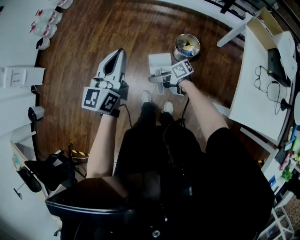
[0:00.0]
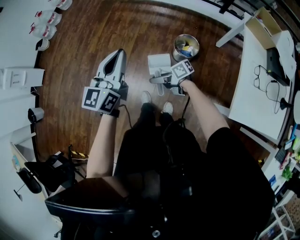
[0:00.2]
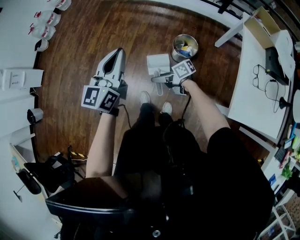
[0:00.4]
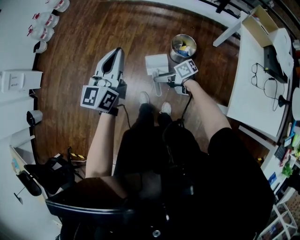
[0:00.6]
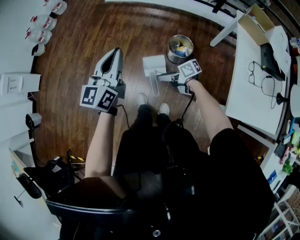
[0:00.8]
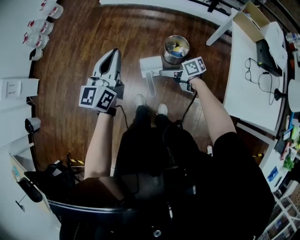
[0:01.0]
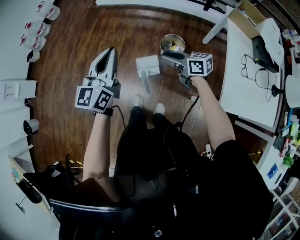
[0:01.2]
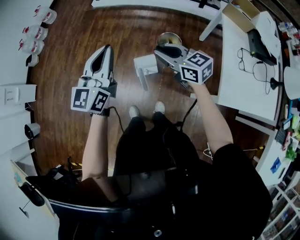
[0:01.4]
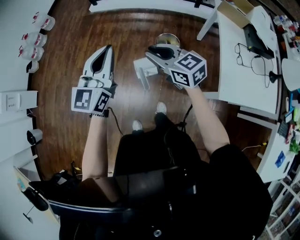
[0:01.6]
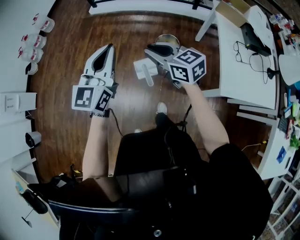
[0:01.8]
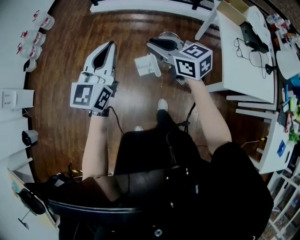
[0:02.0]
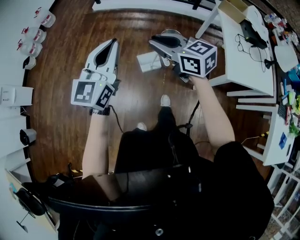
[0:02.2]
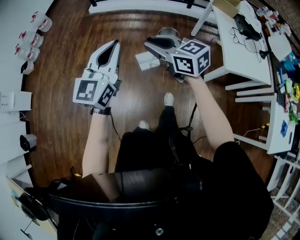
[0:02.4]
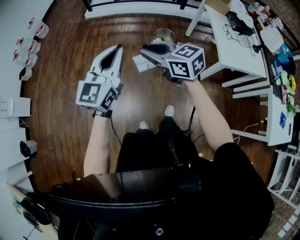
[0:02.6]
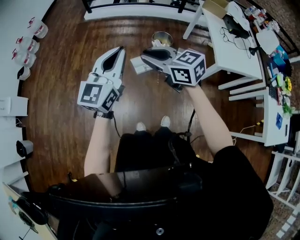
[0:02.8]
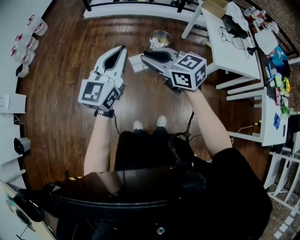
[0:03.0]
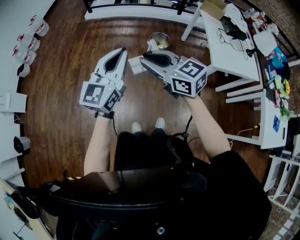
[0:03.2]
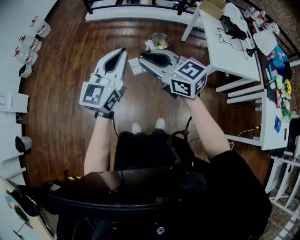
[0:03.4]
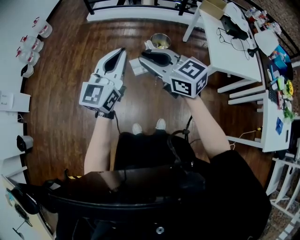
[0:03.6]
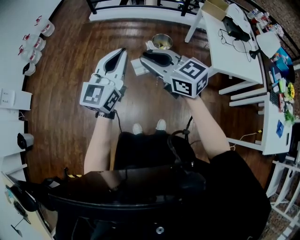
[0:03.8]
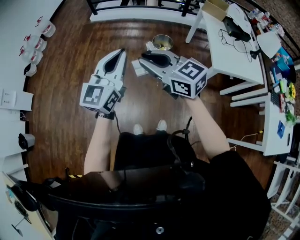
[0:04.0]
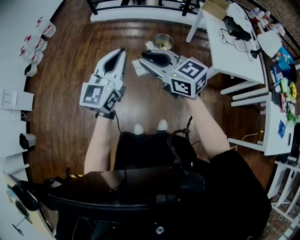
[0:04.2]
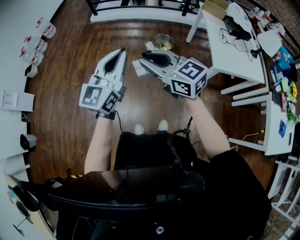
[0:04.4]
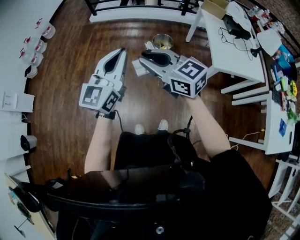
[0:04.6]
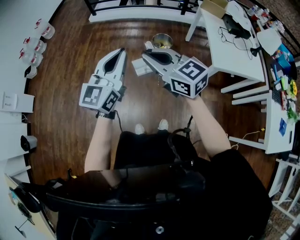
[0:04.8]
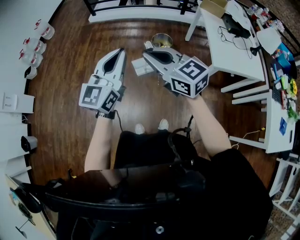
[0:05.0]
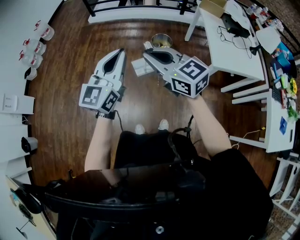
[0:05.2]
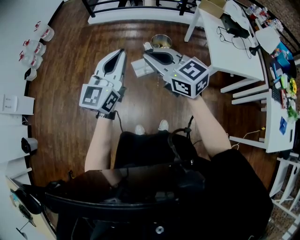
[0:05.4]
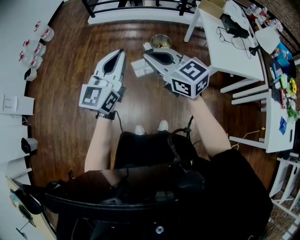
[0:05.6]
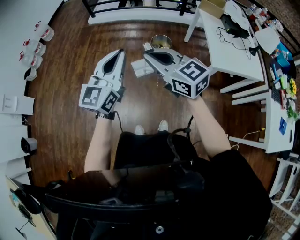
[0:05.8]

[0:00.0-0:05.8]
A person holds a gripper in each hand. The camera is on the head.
0.0 to 1.4 s: The left gripper ends up some 5 cm from where it was, while the right gripper is displaced upward and to the right by some 25 cm, rotates some 60 degrees, and closes.
1.4 to 2.8 s: The right gripper travels to the left and backward by some 35 cm, while the left gripper moves backward and to the left, some 30 cm.
2.8 to 4.4 s: The left gripper is displaced to the right by approximately 5 cm, while the right gripper is displaced to the right and backward by about 10 cm.
4.4 to 5.8 s: The grippers make only small movements.

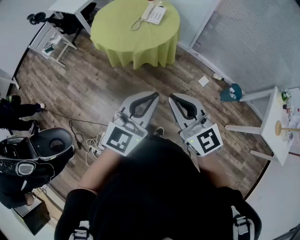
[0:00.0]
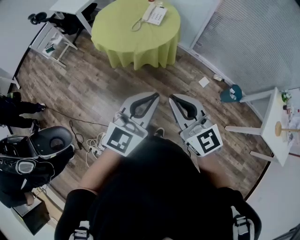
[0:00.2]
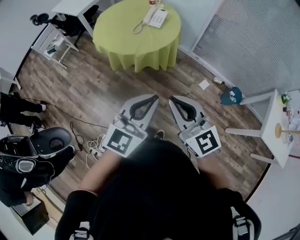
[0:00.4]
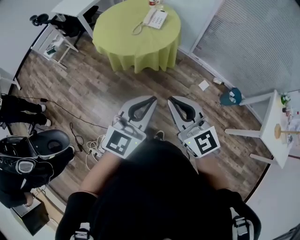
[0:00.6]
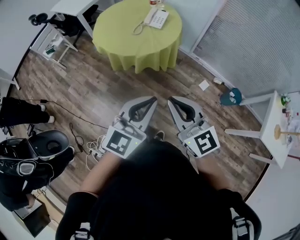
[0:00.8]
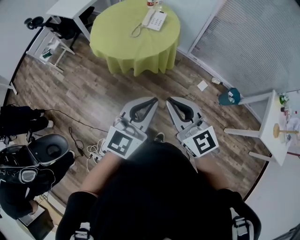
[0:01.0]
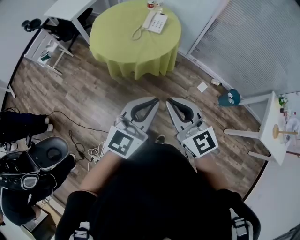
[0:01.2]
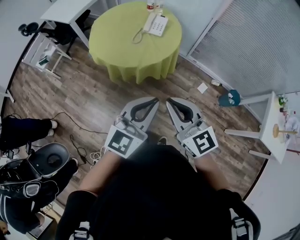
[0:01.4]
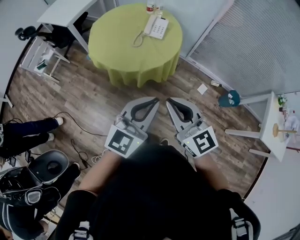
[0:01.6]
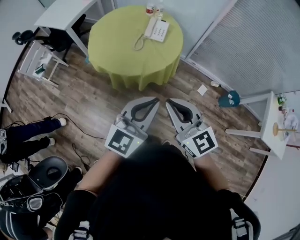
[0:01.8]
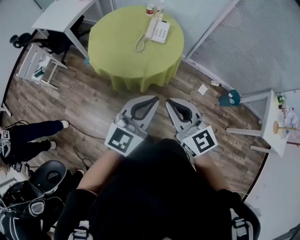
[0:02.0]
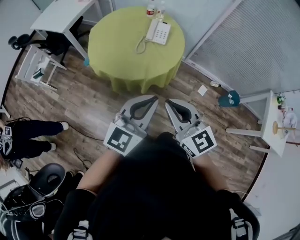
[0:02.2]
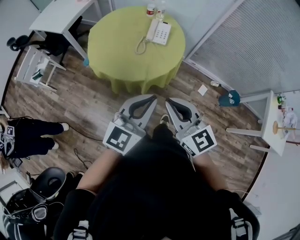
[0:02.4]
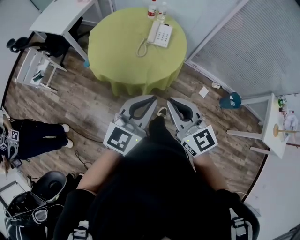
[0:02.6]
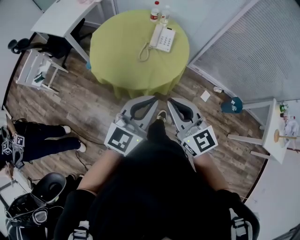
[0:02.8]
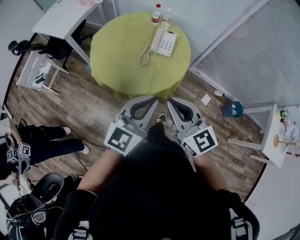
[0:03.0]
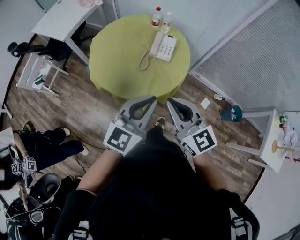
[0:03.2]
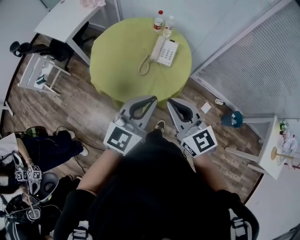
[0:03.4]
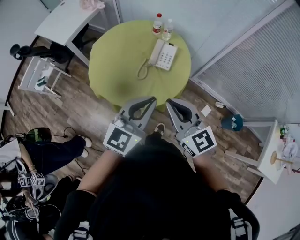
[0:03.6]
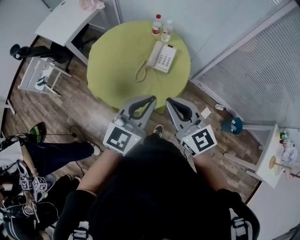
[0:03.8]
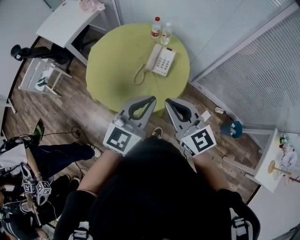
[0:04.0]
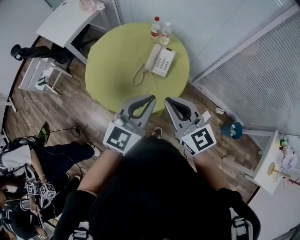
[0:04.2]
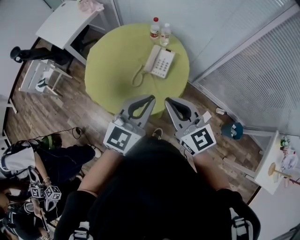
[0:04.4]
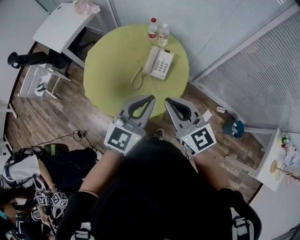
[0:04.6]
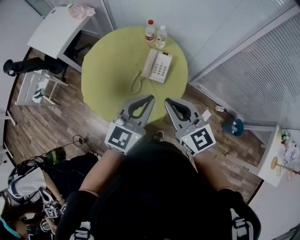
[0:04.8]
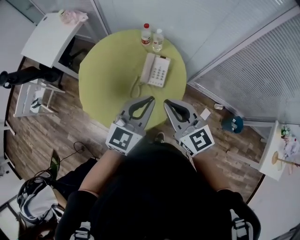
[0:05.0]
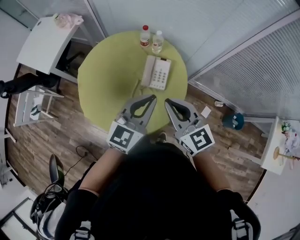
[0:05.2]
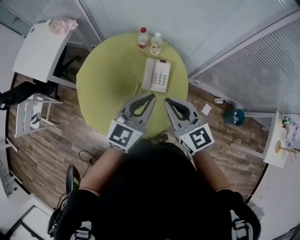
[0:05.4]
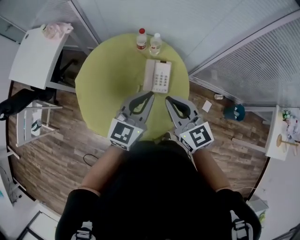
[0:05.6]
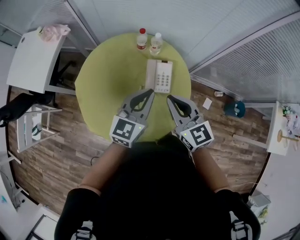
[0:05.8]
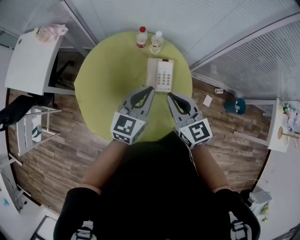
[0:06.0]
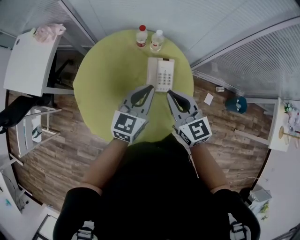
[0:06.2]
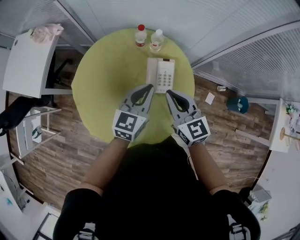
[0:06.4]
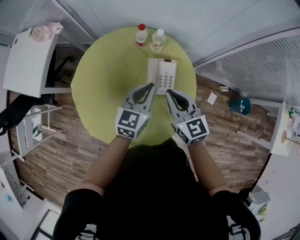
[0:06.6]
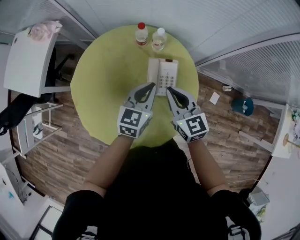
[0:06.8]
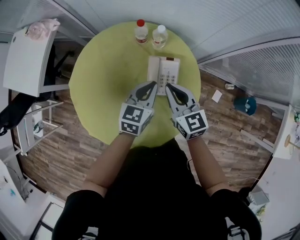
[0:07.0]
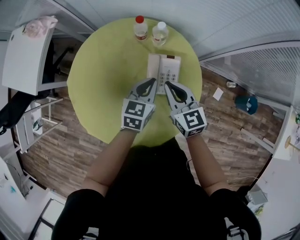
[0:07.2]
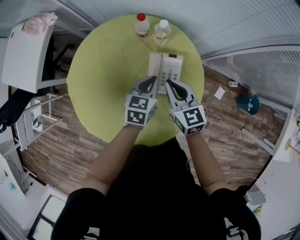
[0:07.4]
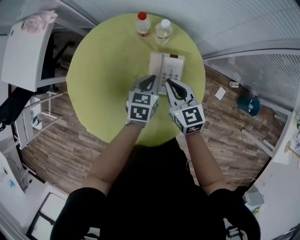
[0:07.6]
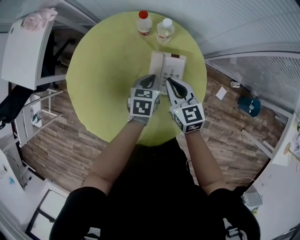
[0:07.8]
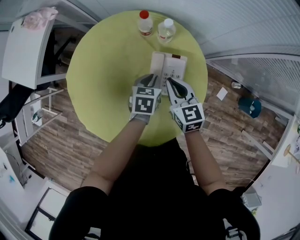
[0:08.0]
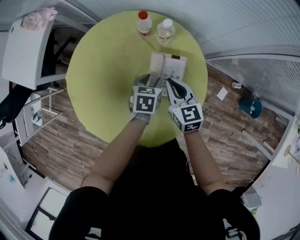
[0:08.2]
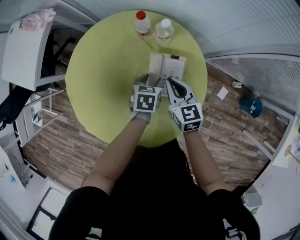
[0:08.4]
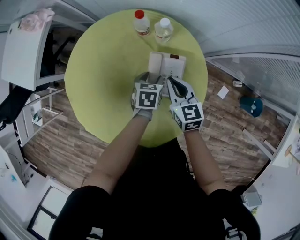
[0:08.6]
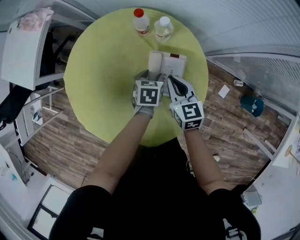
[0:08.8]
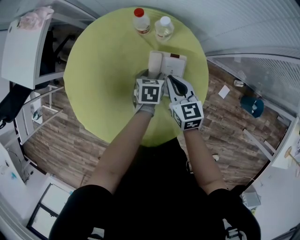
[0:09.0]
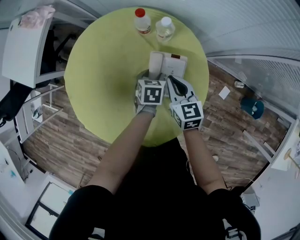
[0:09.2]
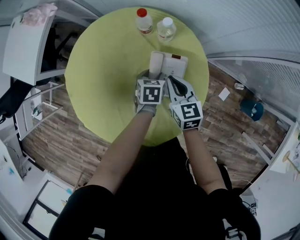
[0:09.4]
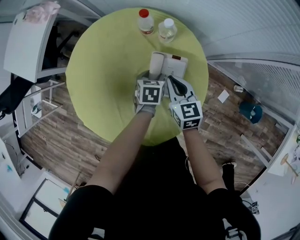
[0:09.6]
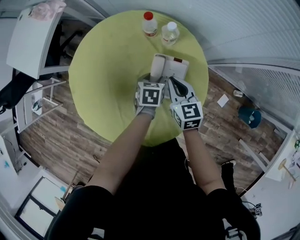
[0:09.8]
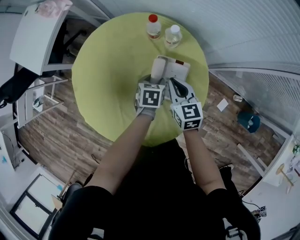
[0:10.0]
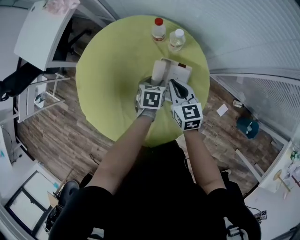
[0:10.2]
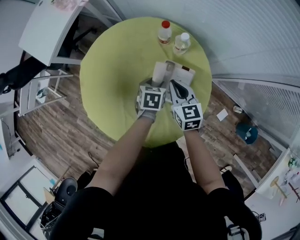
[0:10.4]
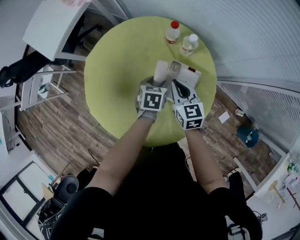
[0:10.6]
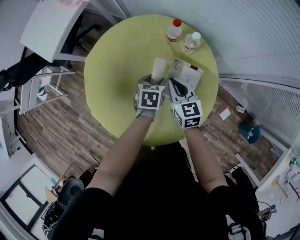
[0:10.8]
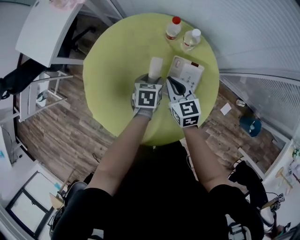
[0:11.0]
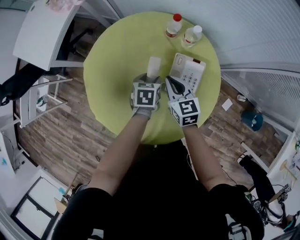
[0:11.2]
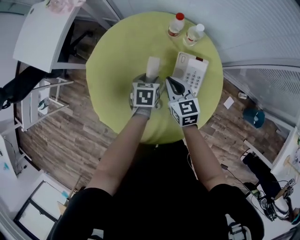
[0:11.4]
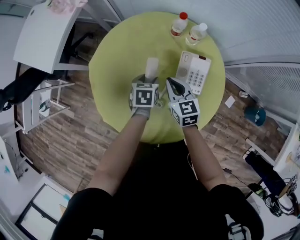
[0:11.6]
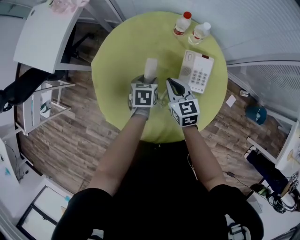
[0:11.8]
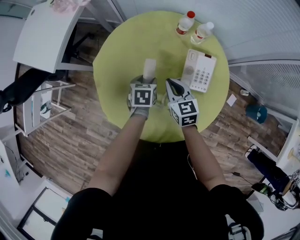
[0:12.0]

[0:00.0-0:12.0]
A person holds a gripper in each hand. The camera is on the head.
0.0 to 1.6 s: The grippers both shift forward and to the left by approximately 20 cm.
1.6 to 3.0 s: The two grippers go about 20 cm forward and to the left.
3.0 to 4.4 s: The two grippers go some 20 cm forward and to the right.
4.4 to 6.0 s: The grippers both shift forward, to the left and downward by approximately 25 cm. The right gripper changes its angle by approximately 30 degrees.
6.0 to 7.6 s: Both grippers travel together downward and forward, roughly 25 cm. The left gripper angles its fingers downward, by about 30 degrees.
7.6 to 9.0 s: The left gripper heads downward, covering approximately 10 cm, and opens up. The right gripper travels downward by about 5 cm.
9.0 to 10.4 s: The left gripper goes approximately 5 cm upward.
10.4 to 12.0 s: Both grippers travel together to the left, about 15 cm.

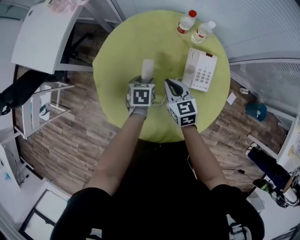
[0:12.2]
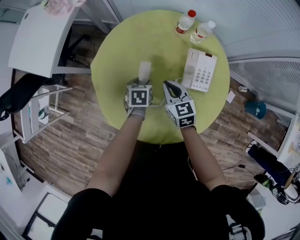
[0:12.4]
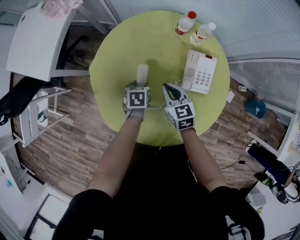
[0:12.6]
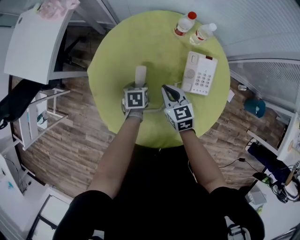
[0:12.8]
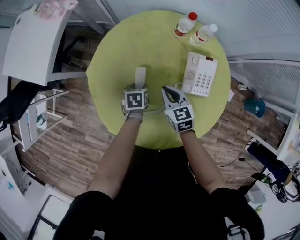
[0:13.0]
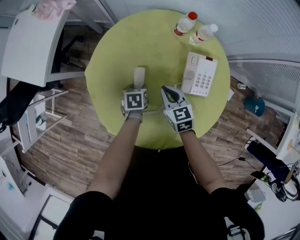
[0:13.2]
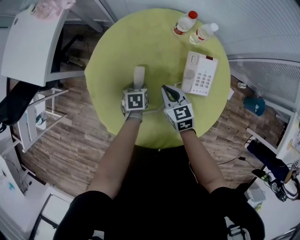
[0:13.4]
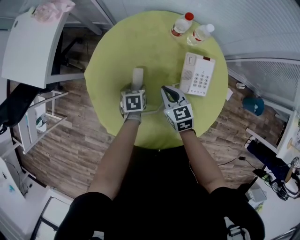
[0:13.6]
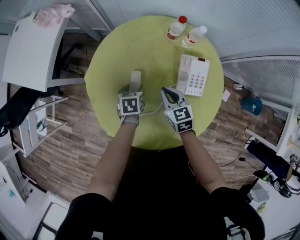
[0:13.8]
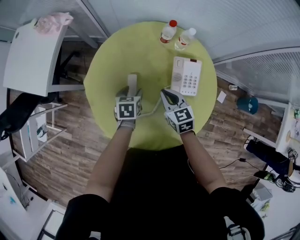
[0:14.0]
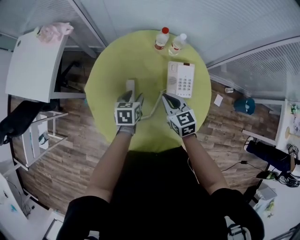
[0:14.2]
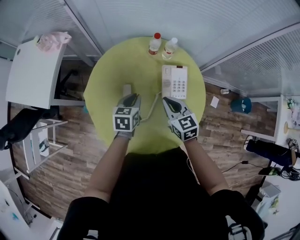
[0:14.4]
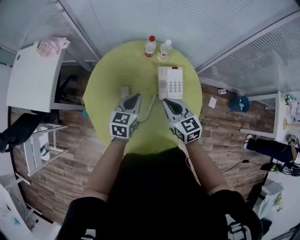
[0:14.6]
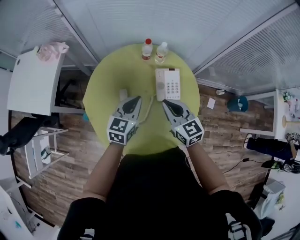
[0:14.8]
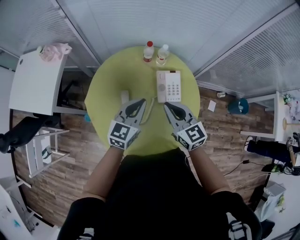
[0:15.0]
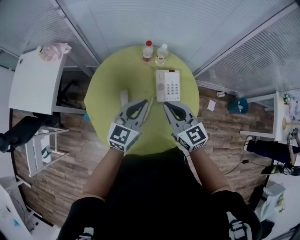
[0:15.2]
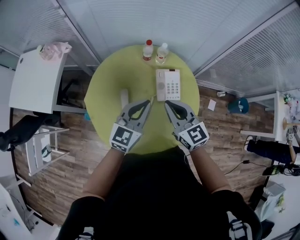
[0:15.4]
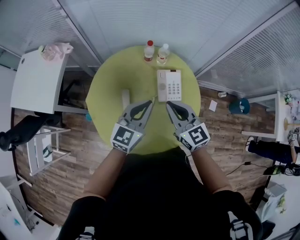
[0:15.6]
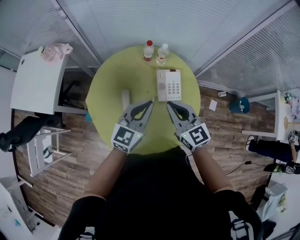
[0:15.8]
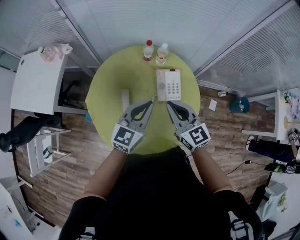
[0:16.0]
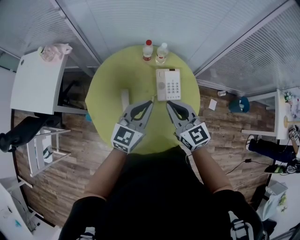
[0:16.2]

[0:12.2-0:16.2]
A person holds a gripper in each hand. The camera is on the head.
12.2 to 13.6 s: The left gripper shifts some 5 cm downward.
13.6 to 14.8 s: The two grippers go roughly 25 cm upward. The left gripper angles its fingers upward, by some 40 degrees, and closes its fingers.
14.8 to 16.2 s: The left gripper travels upward by some 5 cm. Meanwhile the right gripper shifts by roughly 5 cm.

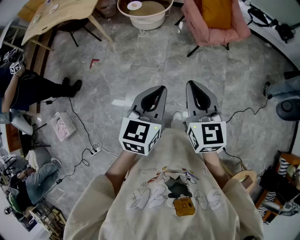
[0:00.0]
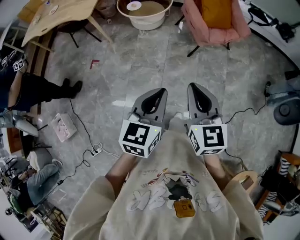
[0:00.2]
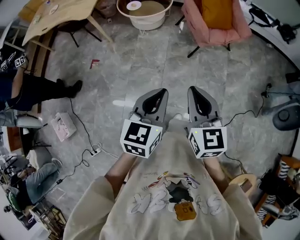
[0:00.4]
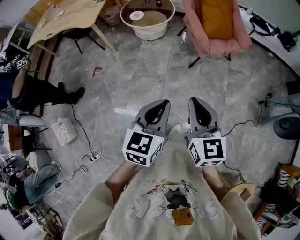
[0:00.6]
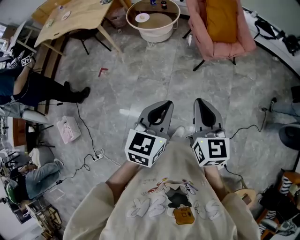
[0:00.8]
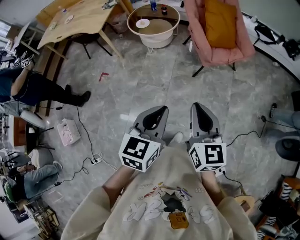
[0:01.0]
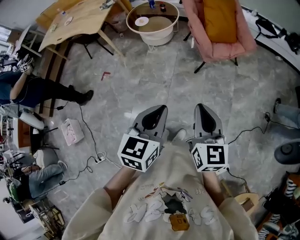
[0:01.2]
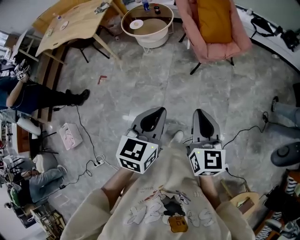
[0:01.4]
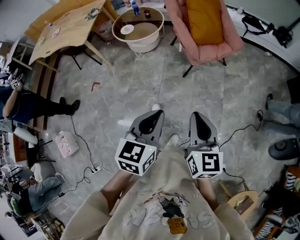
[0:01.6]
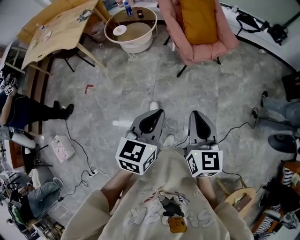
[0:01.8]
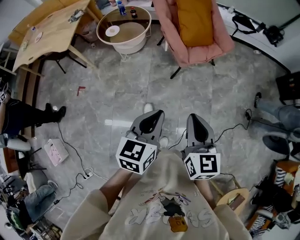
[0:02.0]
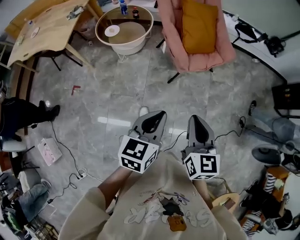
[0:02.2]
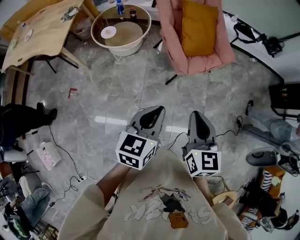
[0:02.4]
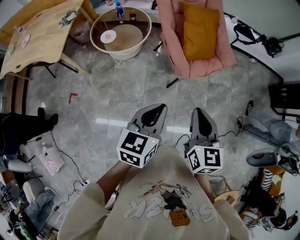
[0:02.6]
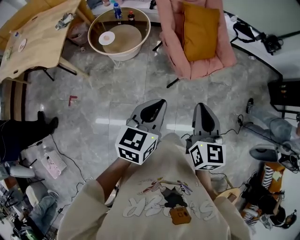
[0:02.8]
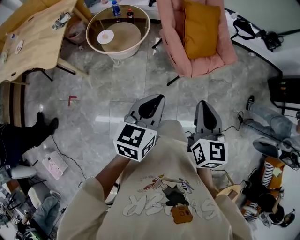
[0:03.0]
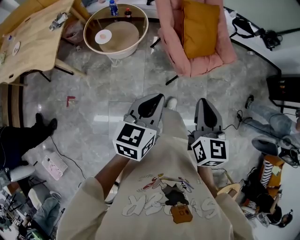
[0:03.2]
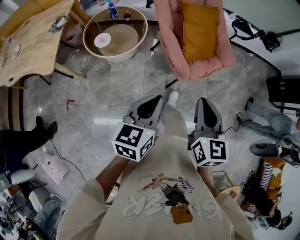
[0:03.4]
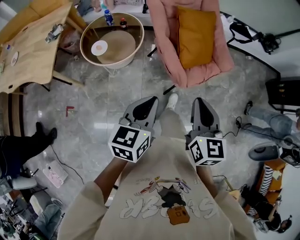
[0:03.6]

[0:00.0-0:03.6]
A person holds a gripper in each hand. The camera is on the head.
0.0 to 1.8 s: The right gripper is displaced to the right by roughly 20 cm. The left gripper heads to the right and forward, covering some 15 cm.
1.8 to 3.6 s: The pair of grippers is taken forward and to the left, roughly 40 cm.
